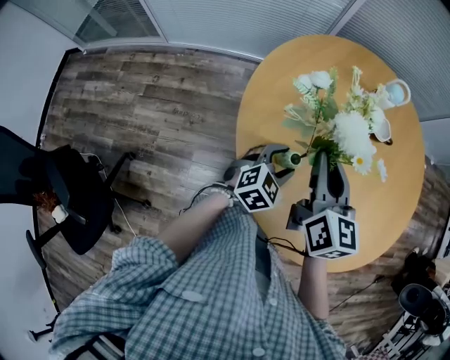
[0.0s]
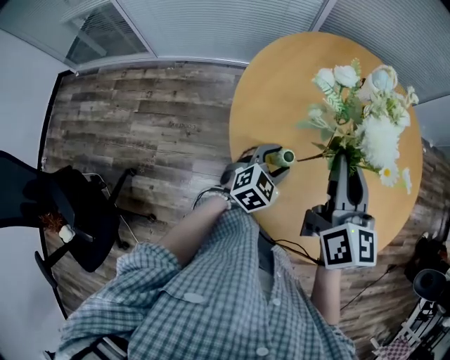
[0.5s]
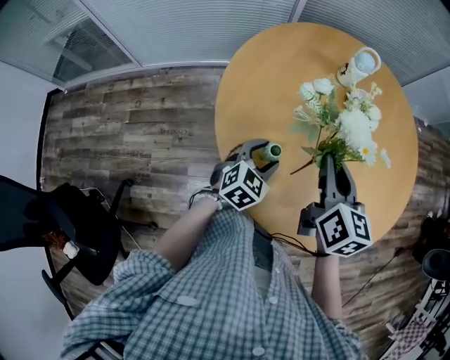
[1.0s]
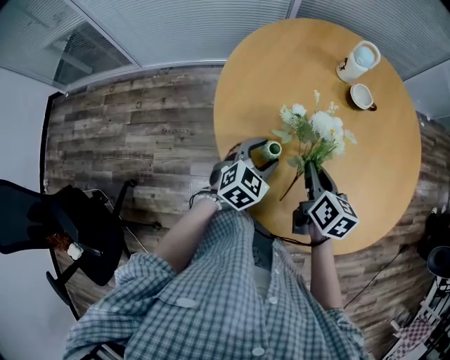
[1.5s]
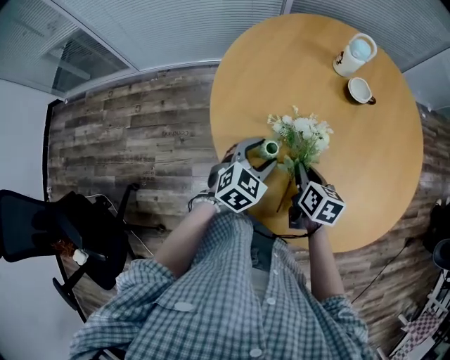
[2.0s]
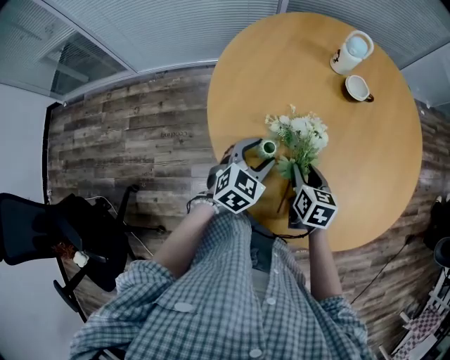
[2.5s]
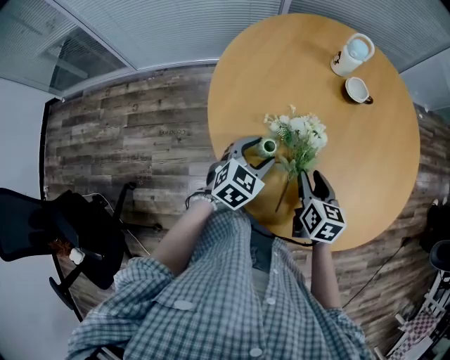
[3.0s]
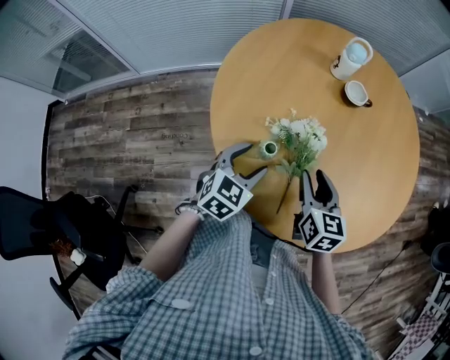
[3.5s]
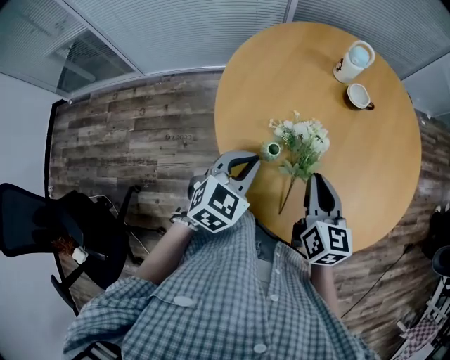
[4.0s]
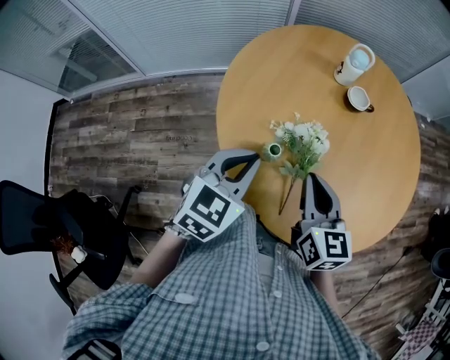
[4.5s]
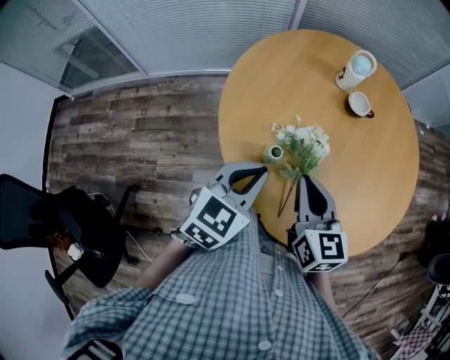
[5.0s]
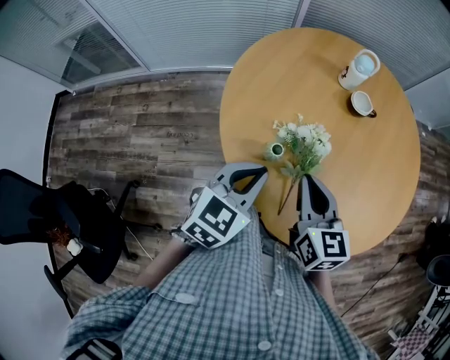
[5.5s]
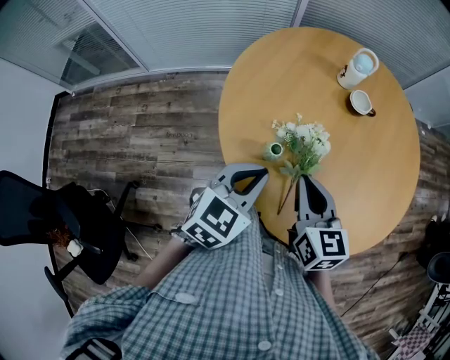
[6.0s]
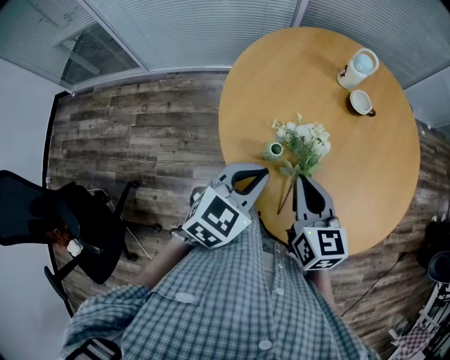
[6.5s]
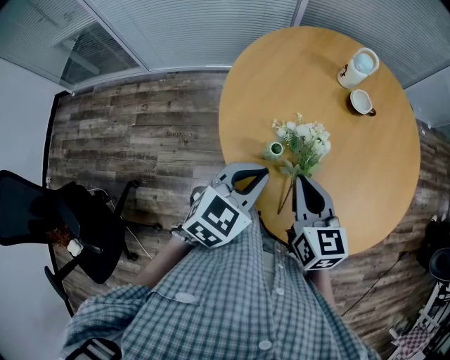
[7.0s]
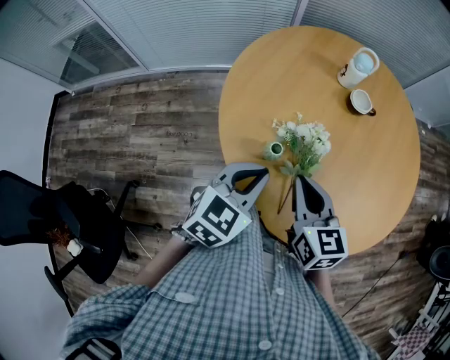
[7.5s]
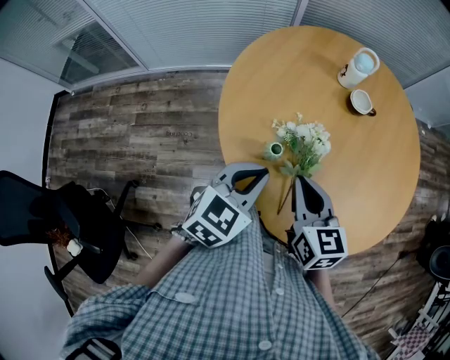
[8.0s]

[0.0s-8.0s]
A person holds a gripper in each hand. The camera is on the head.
0.0s to 2.0s: The right gripper goes about 20 cm downward and to the right, and turns by approximately 30 degrees.
2.0s to 4.0s: The right gripper is displaced upward by roughly 15 cm, turns by approximately 20 degrees, and opens and closes again. Meanwhile the left gripper travels upward by roughly 10 cm, and closes.
4.0s to 6.0s: The right gripper ends up about 5 cm from where it was. The left gripper ends up about 5 cm from where it was.
6.0s to 8.0s: The two grippers keep their place.

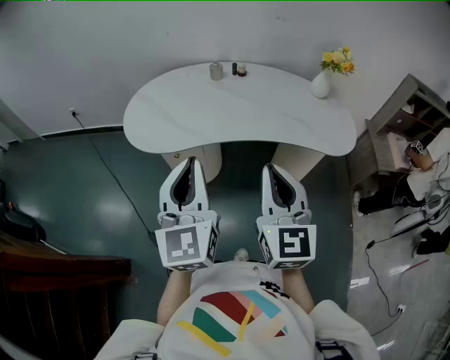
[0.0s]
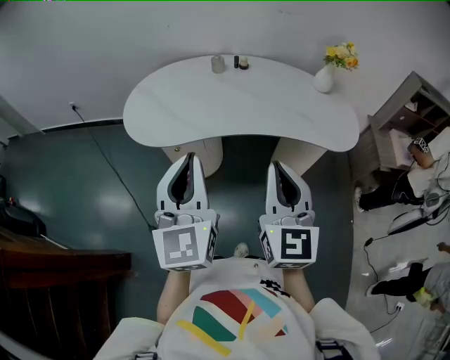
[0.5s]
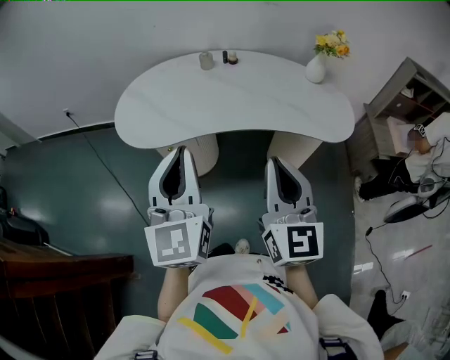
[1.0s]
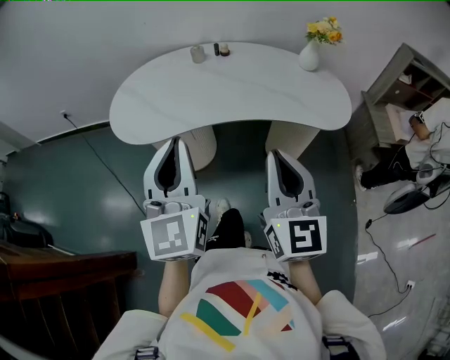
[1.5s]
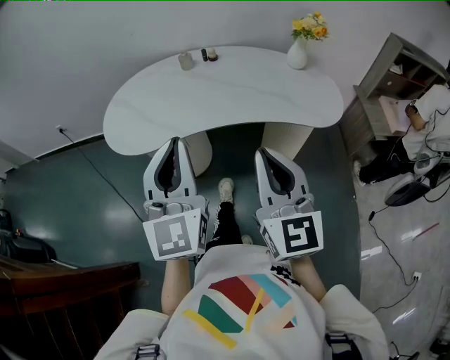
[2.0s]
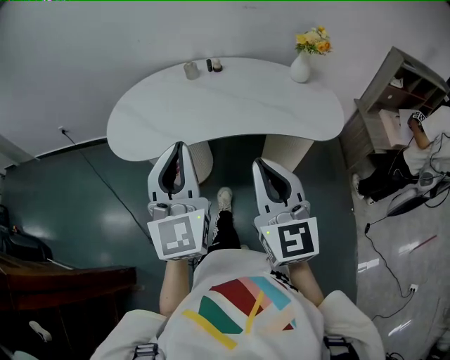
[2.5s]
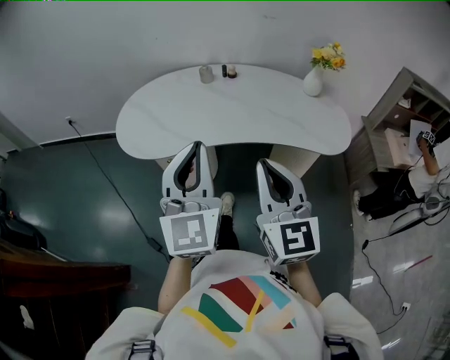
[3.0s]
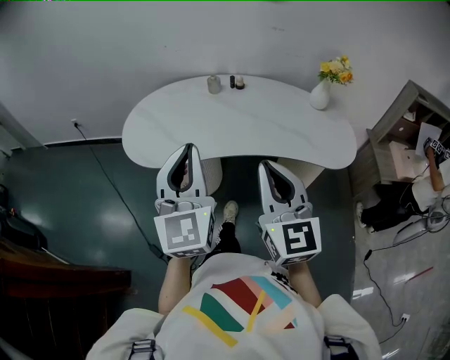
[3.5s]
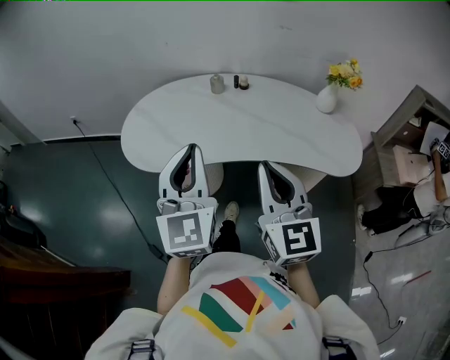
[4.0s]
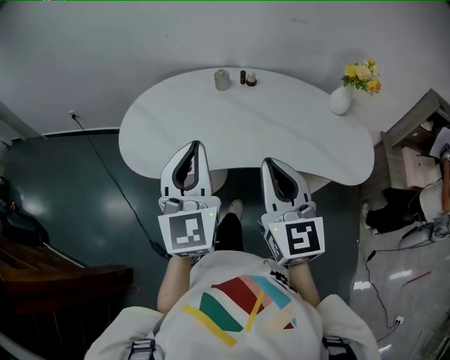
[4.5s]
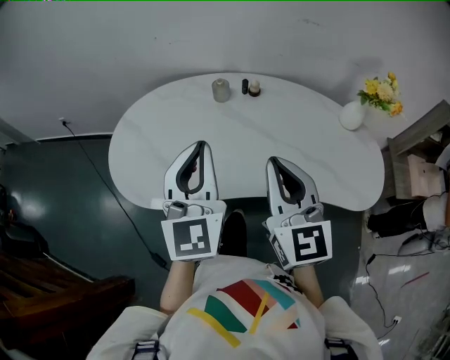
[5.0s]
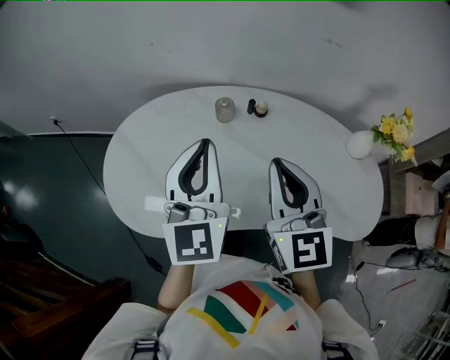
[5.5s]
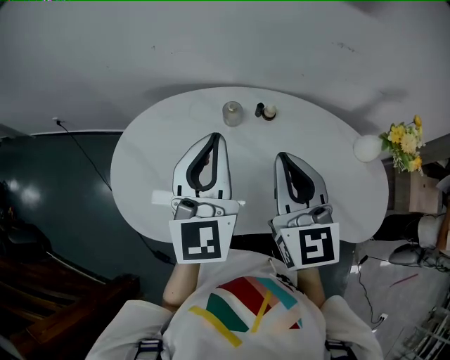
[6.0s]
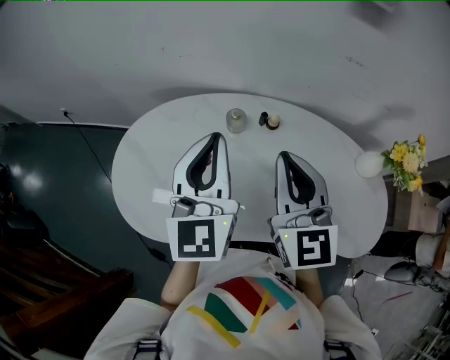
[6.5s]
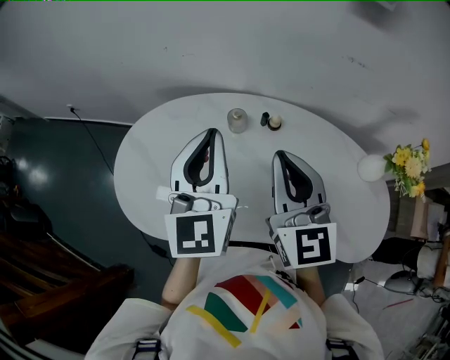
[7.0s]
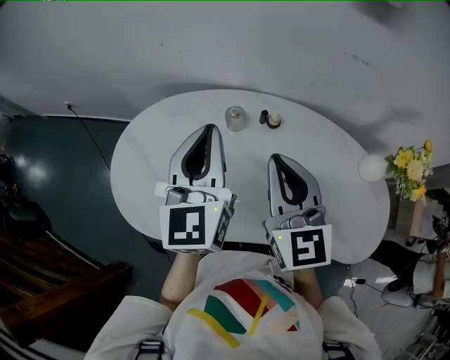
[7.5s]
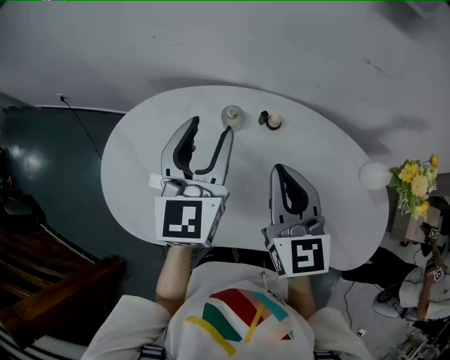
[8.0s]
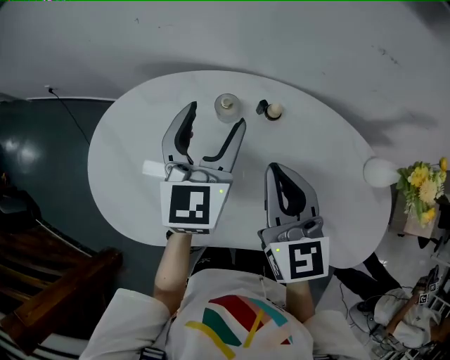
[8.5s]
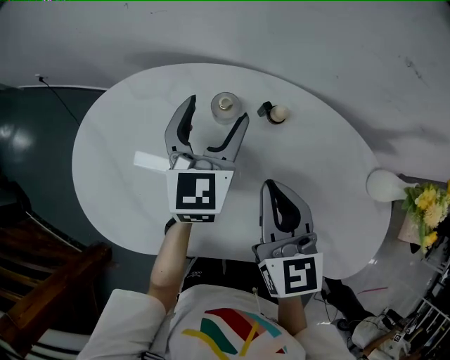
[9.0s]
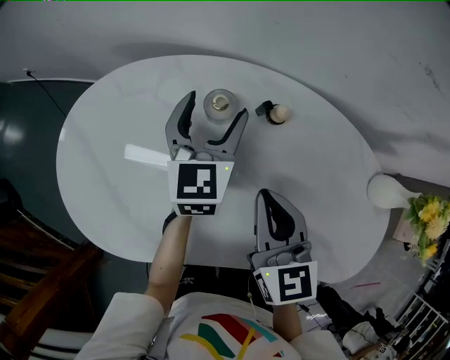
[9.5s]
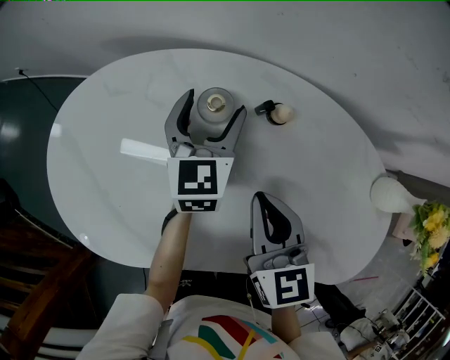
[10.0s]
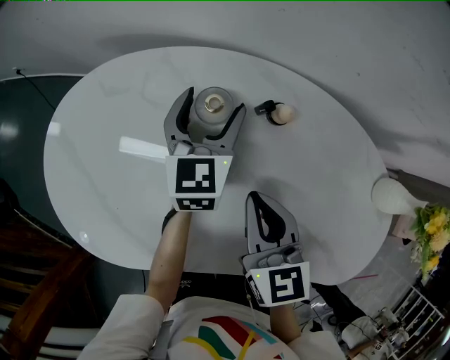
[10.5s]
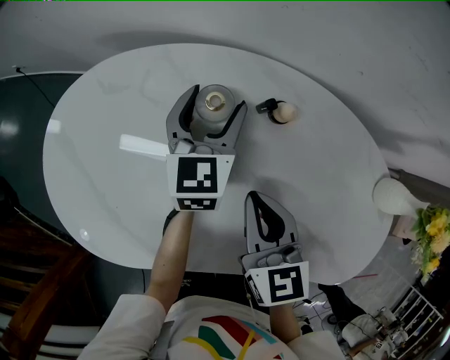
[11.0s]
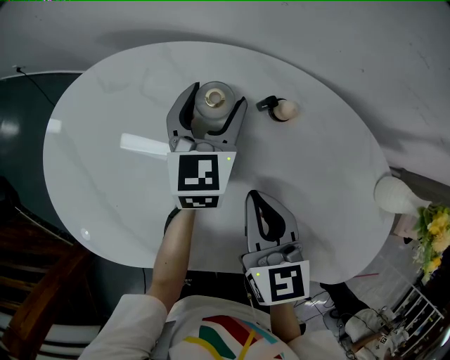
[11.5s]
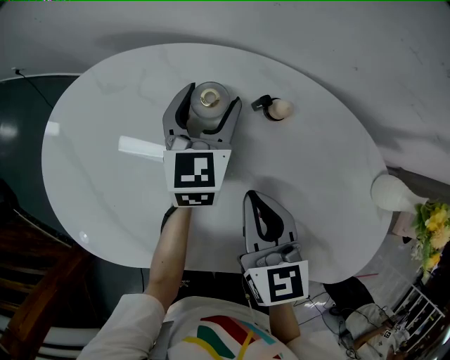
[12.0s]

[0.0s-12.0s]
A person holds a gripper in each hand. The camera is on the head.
0.0s to 2.0s: The two grippers go some 5 cm to the right.
2.0s to 4.0s: Both grippers move forward, roughly 10 cm.
4.0s to 6.0s: The two grippers go about 35 cm forward.
6.0s to 8.0s: The right gripper is displaced downward and forward by approximately 5 cm, while the left gripper travels forward by approximately 10 cm, and opens up.
8.0s to 10.0s: The left gripper goes some 25 cm downward and forward, and opens its fingers. Meanwhile the right gripper goes approximately 15 cm downward.
10.0s to 12.0s: The grippers move only a little.

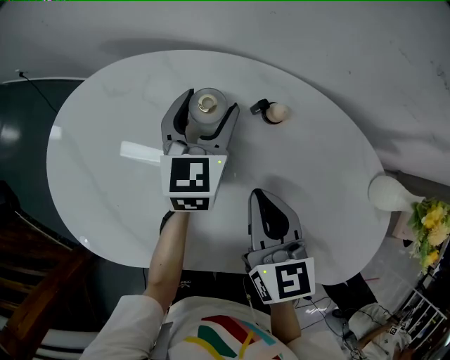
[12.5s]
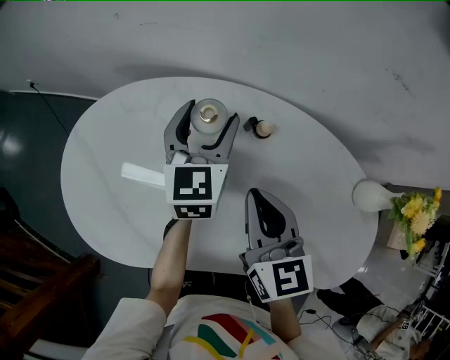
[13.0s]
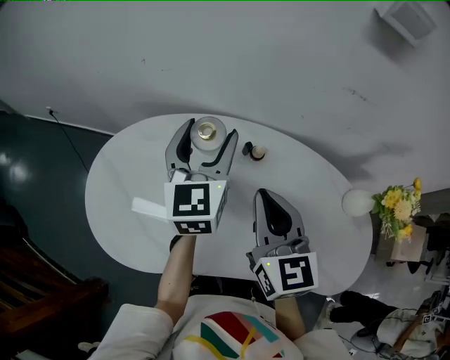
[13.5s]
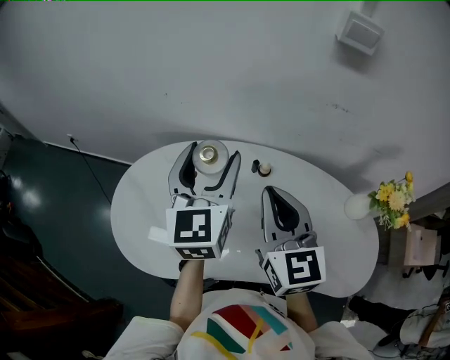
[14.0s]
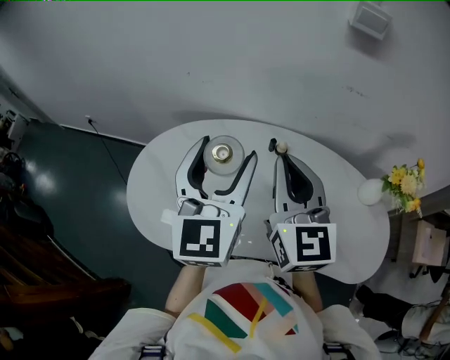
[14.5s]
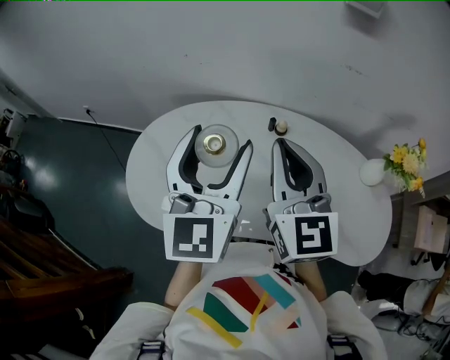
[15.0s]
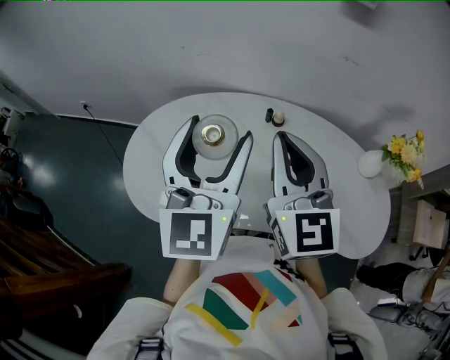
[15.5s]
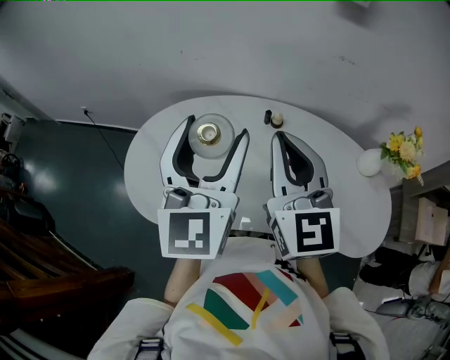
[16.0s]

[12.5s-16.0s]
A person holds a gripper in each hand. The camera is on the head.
12.5s to 14.5s: The left gripper shifts approximately 40 cm upward and backward, and turns by some 30 degrees. Meanwhile the right gripper goes approximately 30 cm upward, and rotates about 30 degrees.
14.5s to 16.0s: The grippers both shift backward by approximately 5 cm.

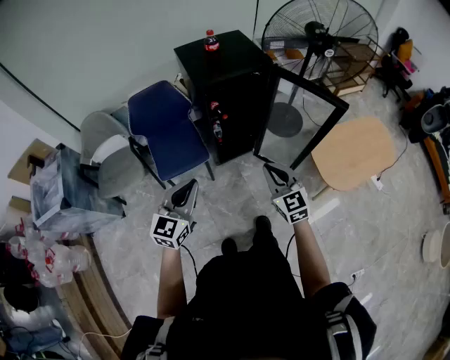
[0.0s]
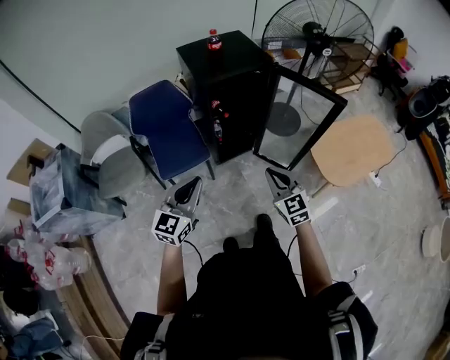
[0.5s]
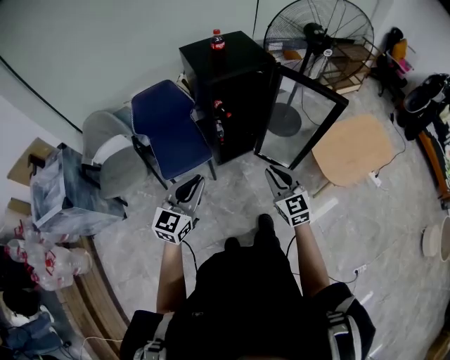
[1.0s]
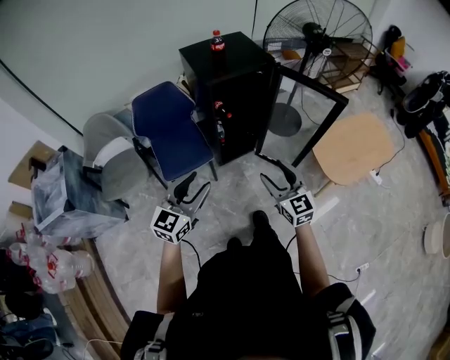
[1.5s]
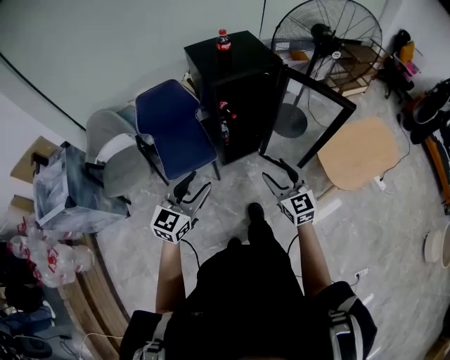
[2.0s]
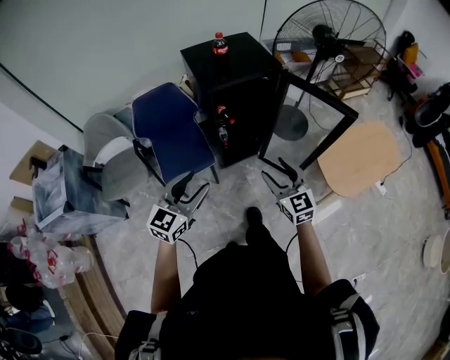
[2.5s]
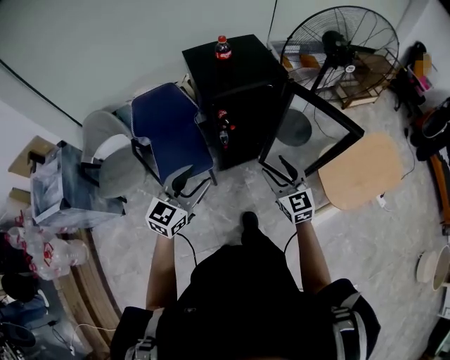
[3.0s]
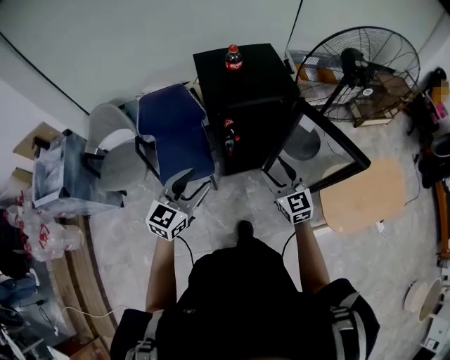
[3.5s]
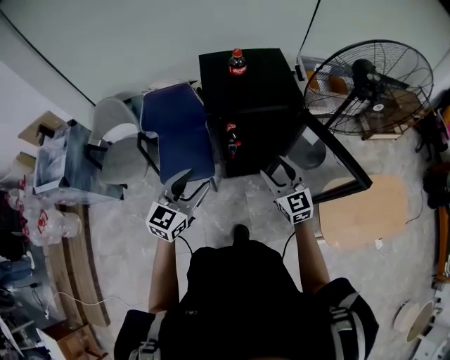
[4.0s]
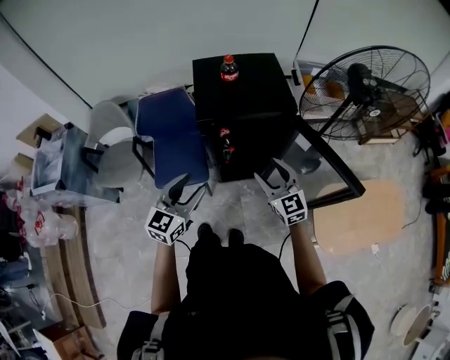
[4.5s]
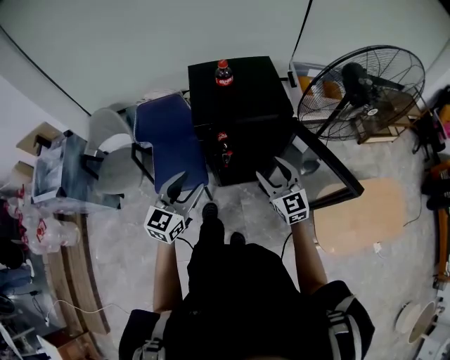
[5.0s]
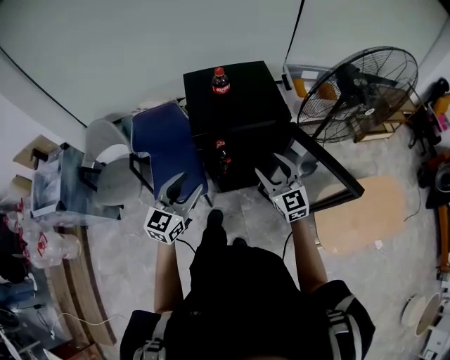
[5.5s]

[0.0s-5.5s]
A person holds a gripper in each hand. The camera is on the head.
0.0s to 2.0s: The left gripper opens its fingers; the right gripper opens its fingers.
2.0s to 3.5s: The two grippers go some 15 cm forward.
3.5s to 5.5s: Both grippers move forward, some 10 cm.
